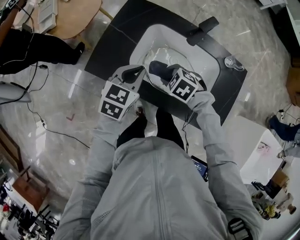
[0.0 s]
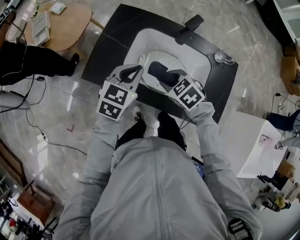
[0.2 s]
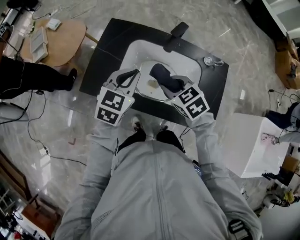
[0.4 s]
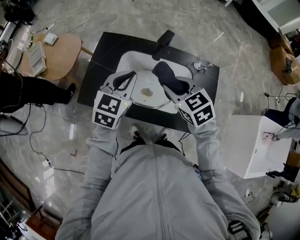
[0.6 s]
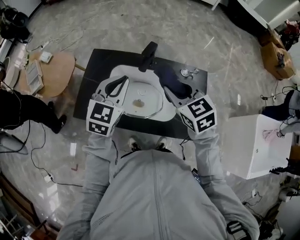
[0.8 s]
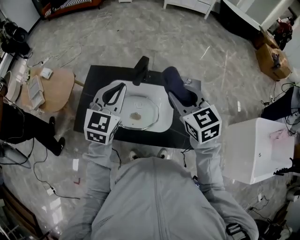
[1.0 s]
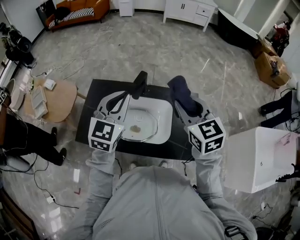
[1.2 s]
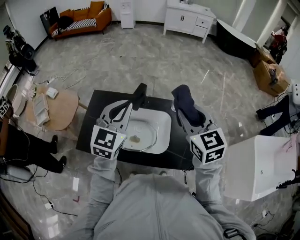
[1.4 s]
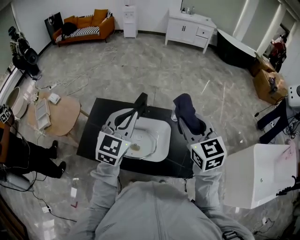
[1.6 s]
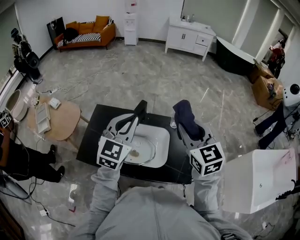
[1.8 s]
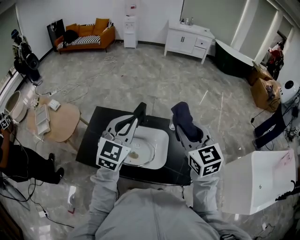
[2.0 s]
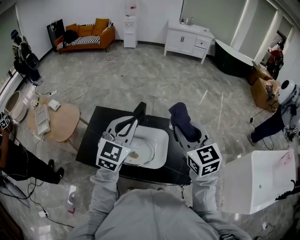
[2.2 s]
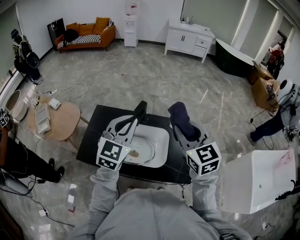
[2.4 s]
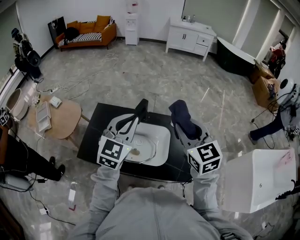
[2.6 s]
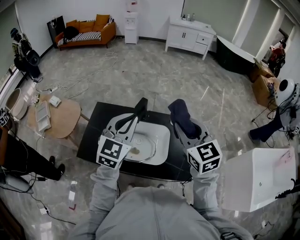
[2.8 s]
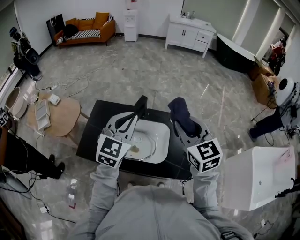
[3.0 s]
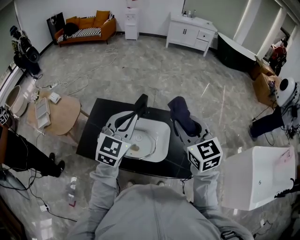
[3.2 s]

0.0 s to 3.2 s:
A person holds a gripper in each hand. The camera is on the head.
0.0 to 1.6 s: Both grippers move upward, some 30 cm. The left gripper swivels approximately 40 degrees; the right gripper points its fingers some 50 degrees further upward.
1.6 to 3.2 s: The grippers move only a little.

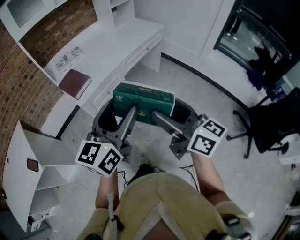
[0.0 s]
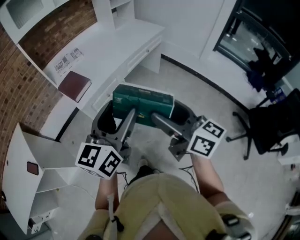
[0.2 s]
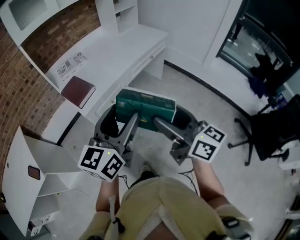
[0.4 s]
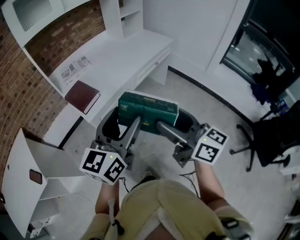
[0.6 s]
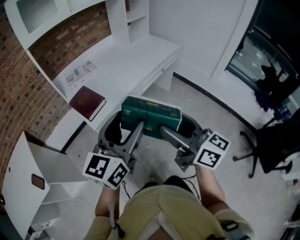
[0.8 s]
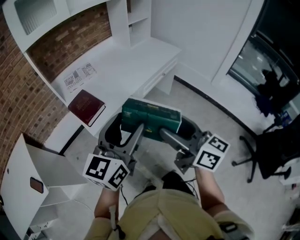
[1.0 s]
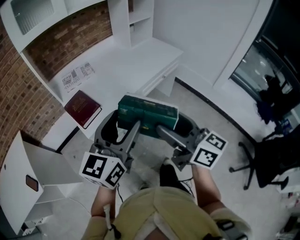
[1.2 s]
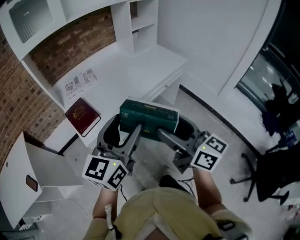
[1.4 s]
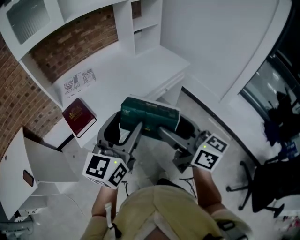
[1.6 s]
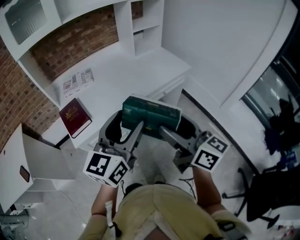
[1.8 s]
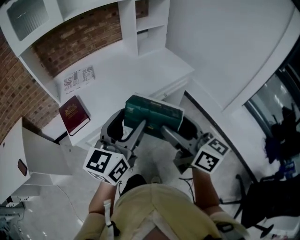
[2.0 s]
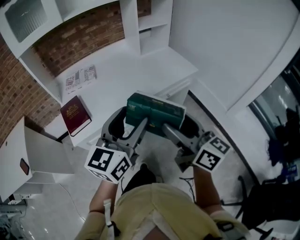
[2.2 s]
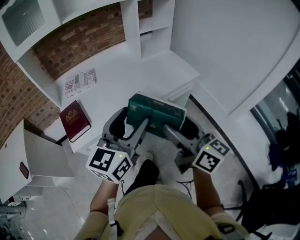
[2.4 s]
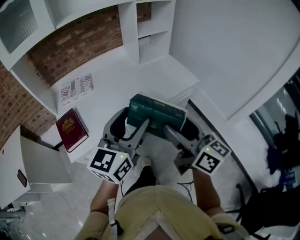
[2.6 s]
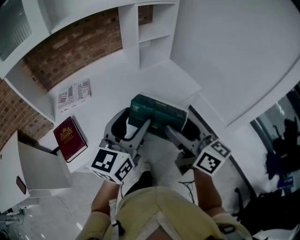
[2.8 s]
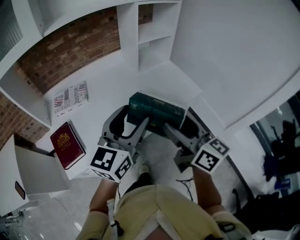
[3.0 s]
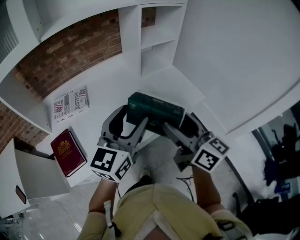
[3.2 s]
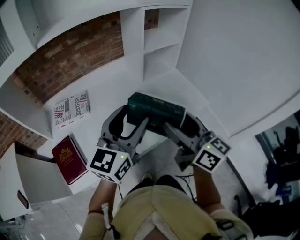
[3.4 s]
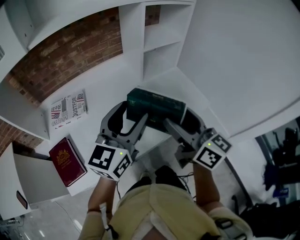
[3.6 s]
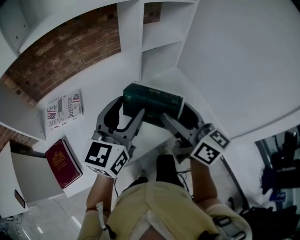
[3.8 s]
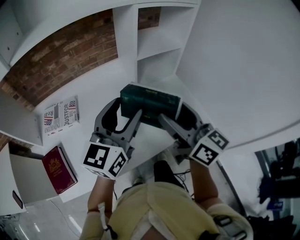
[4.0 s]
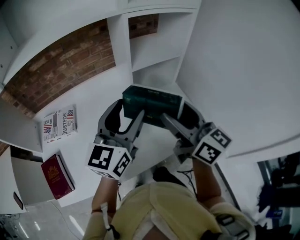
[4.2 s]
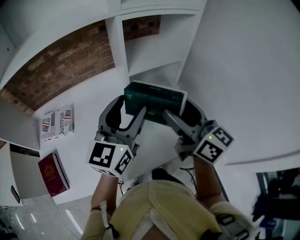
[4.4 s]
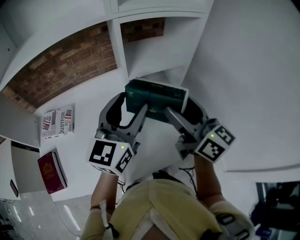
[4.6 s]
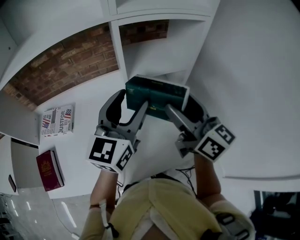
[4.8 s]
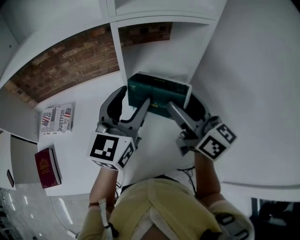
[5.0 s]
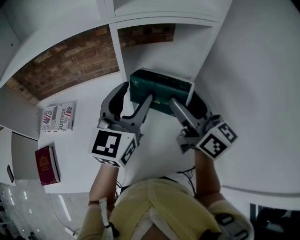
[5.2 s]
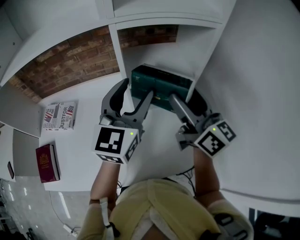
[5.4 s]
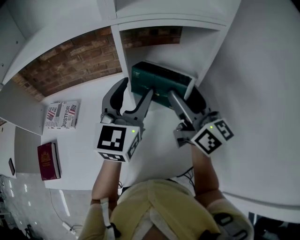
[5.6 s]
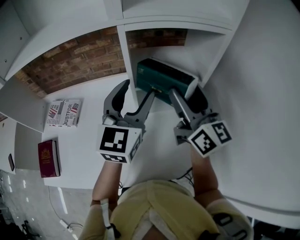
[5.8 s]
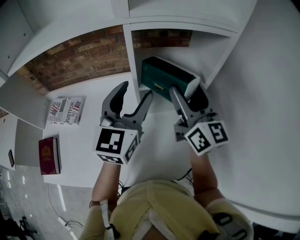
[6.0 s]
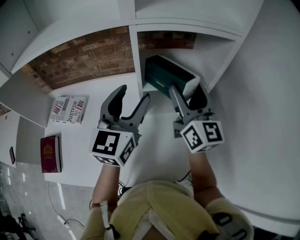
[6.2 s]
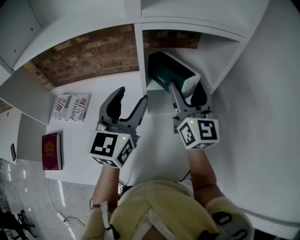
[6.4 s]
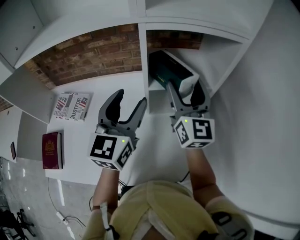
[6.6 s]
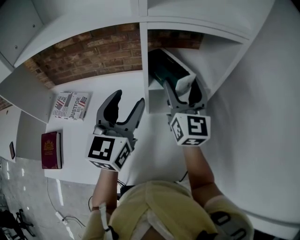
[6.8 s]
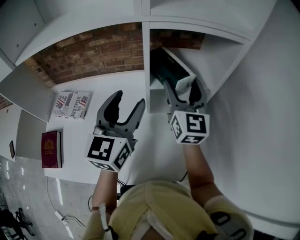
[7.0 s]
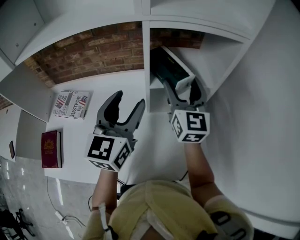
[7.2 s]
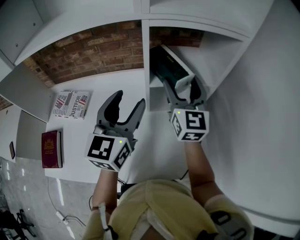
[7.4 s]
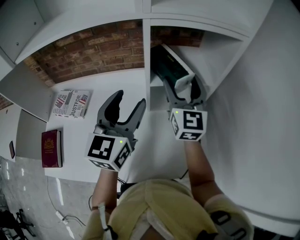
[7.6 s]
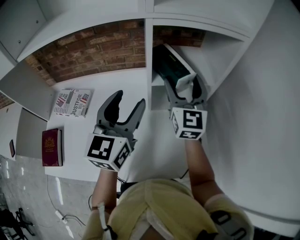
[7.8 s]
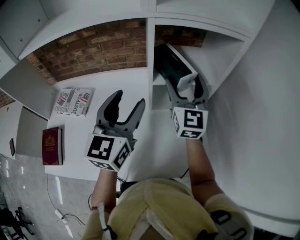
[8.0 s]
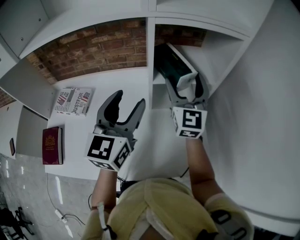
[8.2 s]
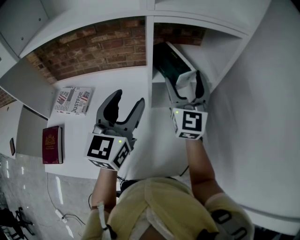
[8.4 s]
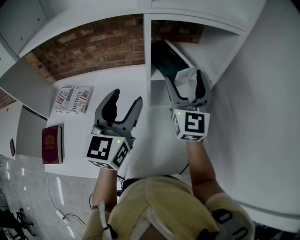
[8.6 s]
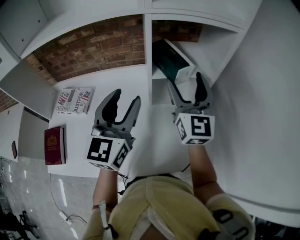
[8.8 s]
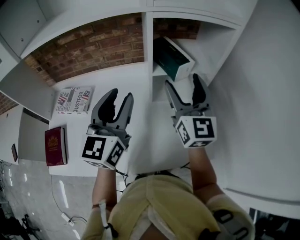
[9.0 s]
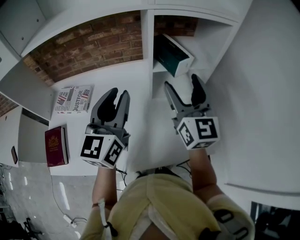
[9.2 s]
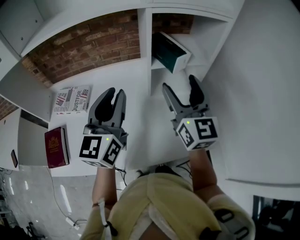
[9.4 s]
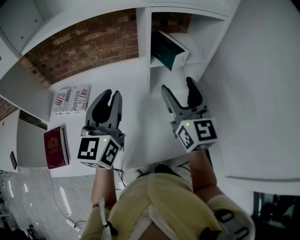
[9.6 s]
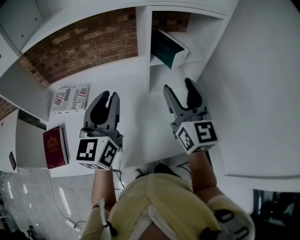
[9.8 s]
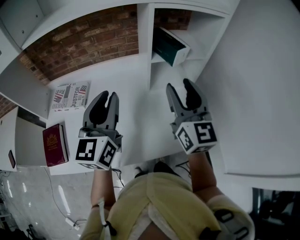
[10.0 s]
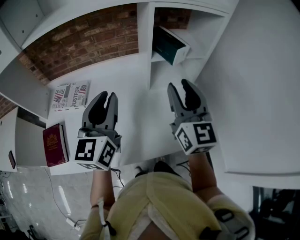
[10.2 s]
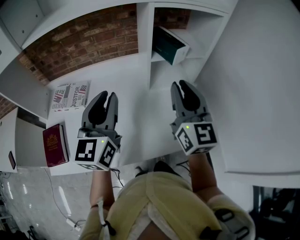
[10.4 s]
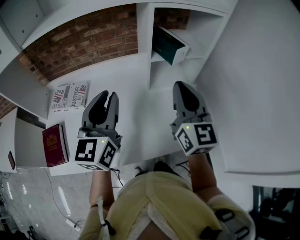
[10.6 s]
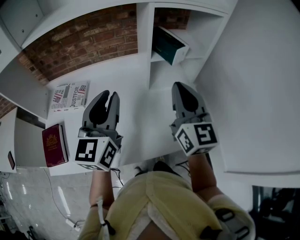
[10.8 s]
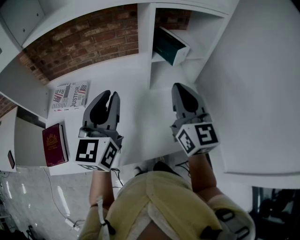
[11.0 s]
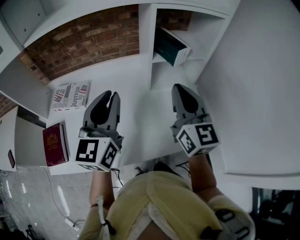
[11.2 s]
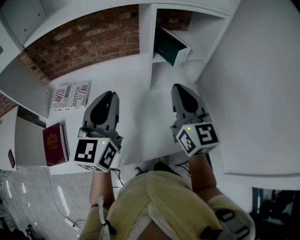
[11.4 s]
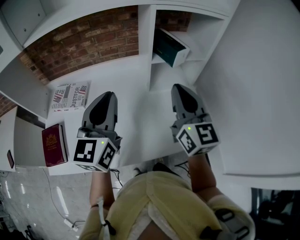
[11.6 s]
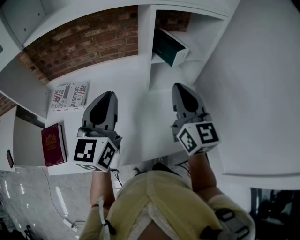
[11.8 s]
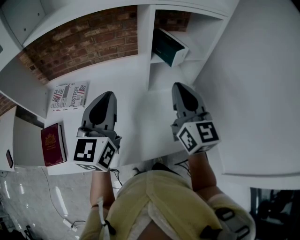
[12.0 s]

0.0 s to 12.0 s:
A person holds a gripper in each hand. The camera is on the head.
0.0 to 1.6 s: Both grippers move forward, approximately 25 cm.
1.6 to 3.0 s: The grippers both shift forward by about 25 cm.
3.0 to 4.4 s: The two grippers go about 30 cm forward.
4.4 to 6.0 s: The grippers both shift forward by roughly 15 cm. The left gripper changes its angle by roughly 20 degrees.
6.0 to 7.6 s: The left gripper heads to the left, covering about 5 cm, while the right gripper moves about 10 cm, and changes its angle by about 20 degrees.
7.6 to 9.0 s: The right gripper heads backward, covering some 10 cm. The left gripper changes place by roughly 5 cm.
9.0 to 10.4 s: The right gripper moves backward, approximately 10 cm, and closes. Meanwhile the left gripper shifts roughly 10 cm backward and to the left.
10.4 to 12.0 s: There are only small adjustments of the grippers.

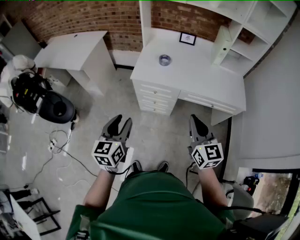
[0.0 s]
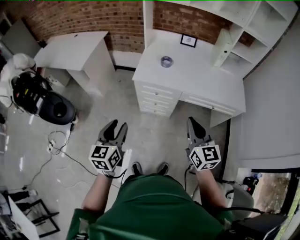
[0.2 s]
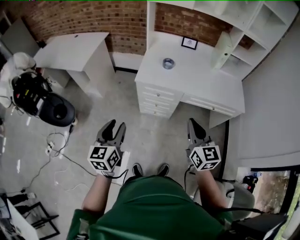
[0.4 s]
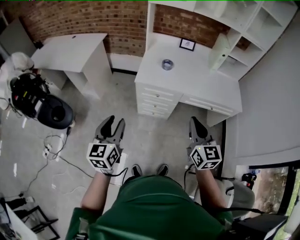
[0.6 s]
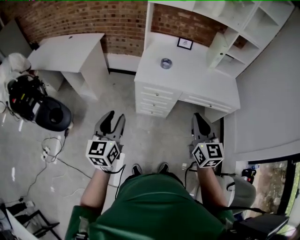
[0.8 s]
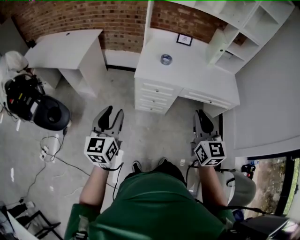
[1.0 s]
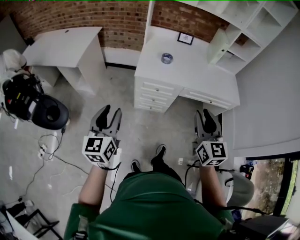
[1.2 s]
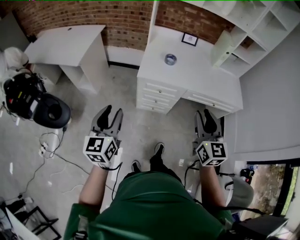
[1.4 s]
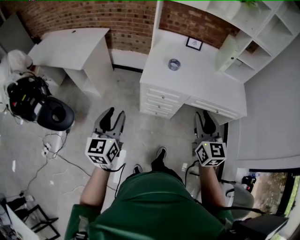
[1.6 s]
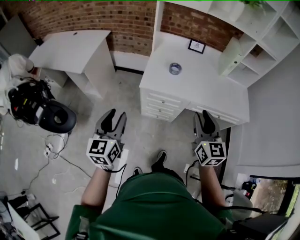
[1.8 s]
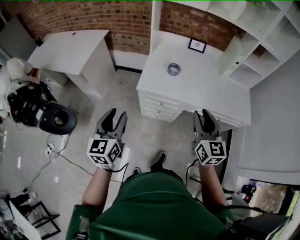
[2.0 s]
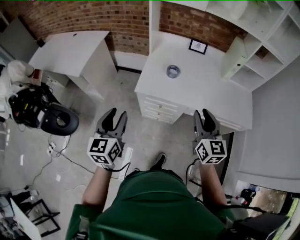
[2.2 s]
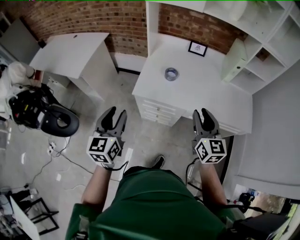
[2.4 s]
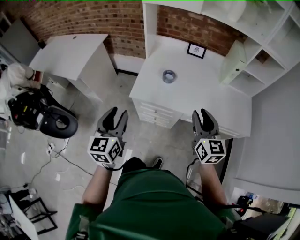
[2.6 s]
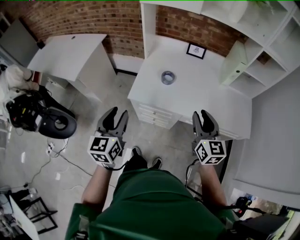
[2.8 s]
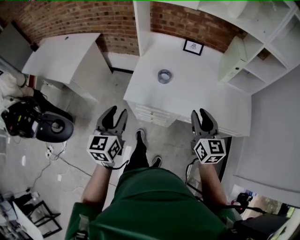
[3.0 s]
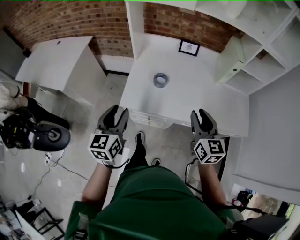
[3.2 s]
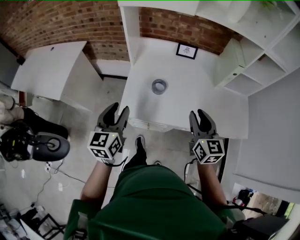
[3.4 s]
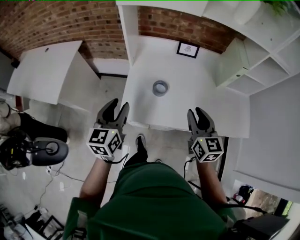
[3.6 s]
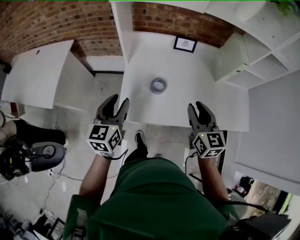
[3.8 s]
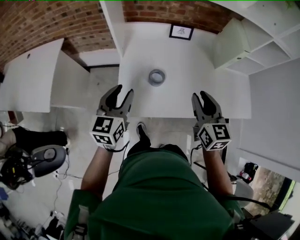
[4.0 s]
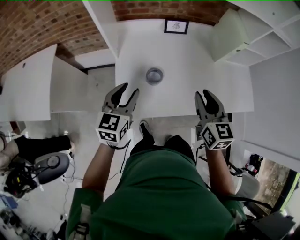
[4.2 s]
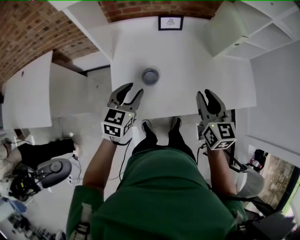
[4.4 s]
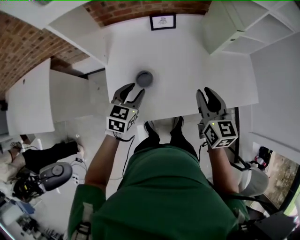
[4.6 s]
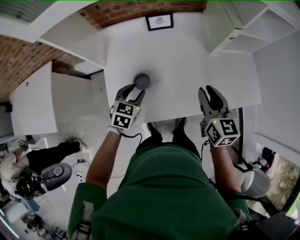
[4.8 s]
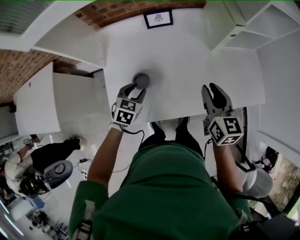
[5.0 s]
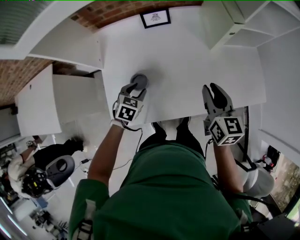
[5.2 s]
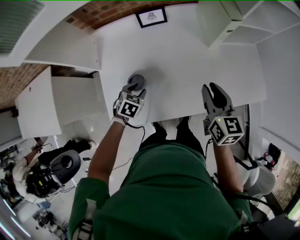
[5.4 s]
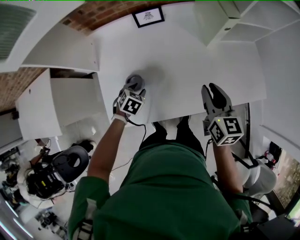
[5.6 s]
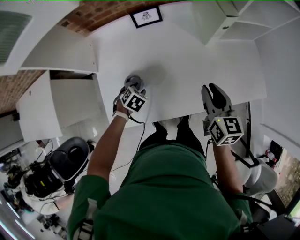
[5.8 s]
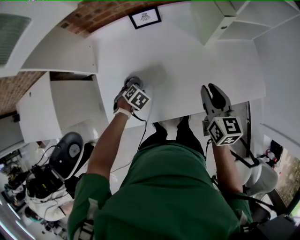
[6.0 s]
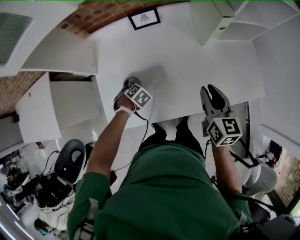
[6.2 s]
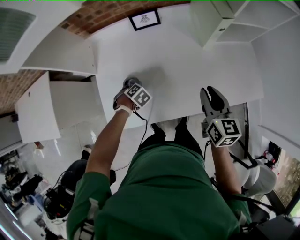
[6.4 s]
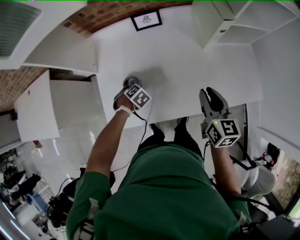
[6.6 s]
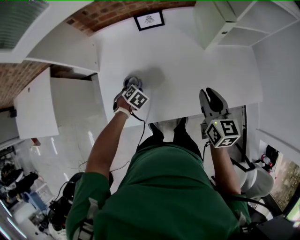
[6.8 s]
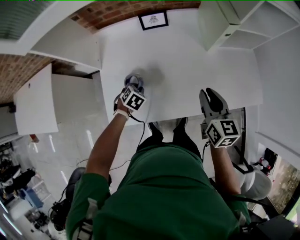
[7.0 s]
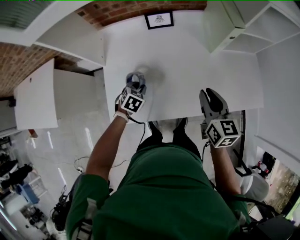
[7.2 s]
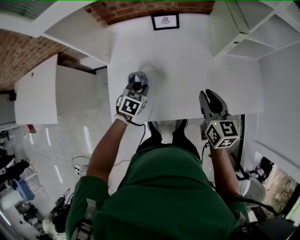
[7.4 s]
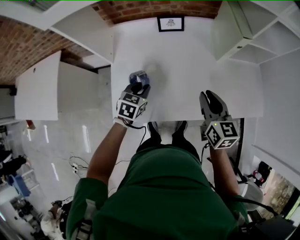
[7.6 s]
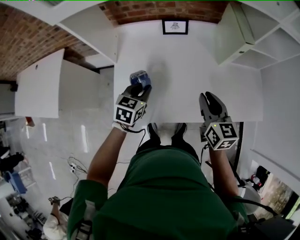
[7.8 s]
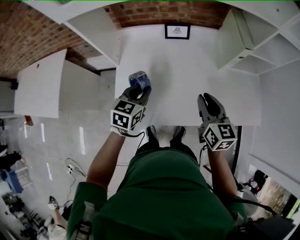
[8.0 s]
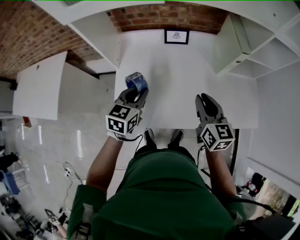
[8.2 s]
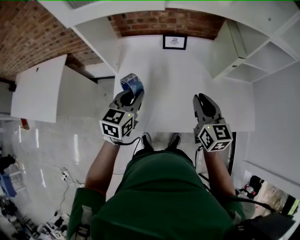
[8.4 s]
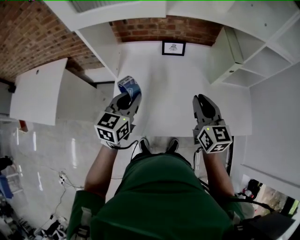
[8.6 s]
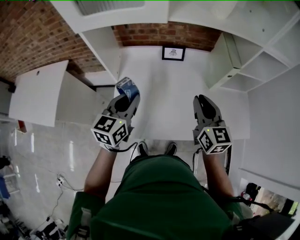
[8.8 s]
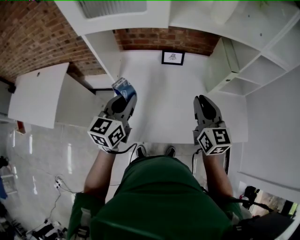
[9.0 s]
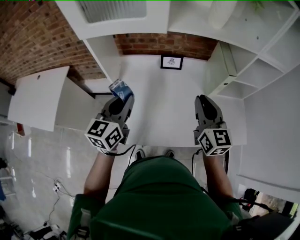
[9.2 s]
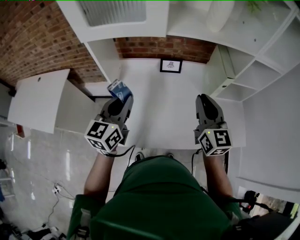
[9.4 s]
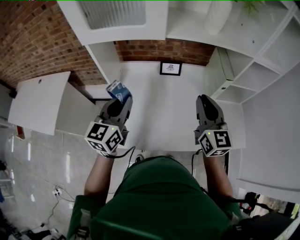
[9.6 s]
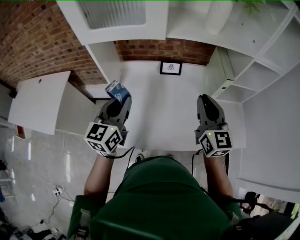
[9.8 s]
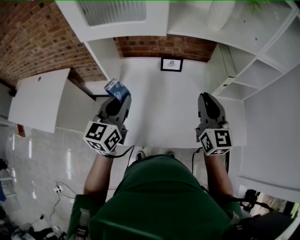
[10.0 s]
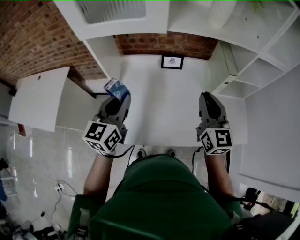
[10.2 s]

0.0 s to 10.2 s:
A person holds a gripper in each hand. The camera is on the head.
0.0 to 1.4 s: The grippers both shift to the left by some 15 cm. The right gripper opens its fingers.
1.4 to 3.0 s: The grippers both shift forward and to the right by approximately 30 cm.
3.0 to 4.4 s: The right gripper moves some 20 cm, and turns by roughly 20 degrees; the left gripper ends up roughly 35 cm from where it was, and turns by about 40 degrees.
4.4 to 5.8 s: The left gripper travels downward by some 20 cm, and tilts its fingers some 50 degrees downward; the right gripper moves about 15 cm.
5.8 to 7.2 s: The left gripper closes up.
7.2 to 8.8 s: The left gripper moves upward, some 30 cm, and tips its fingers upward by some 50 degrees, while the right gripper goes roughly 15 cm upward and to the left.
8.8 to 10.2 s: Both grippers move upward, approximately 5 cm.
